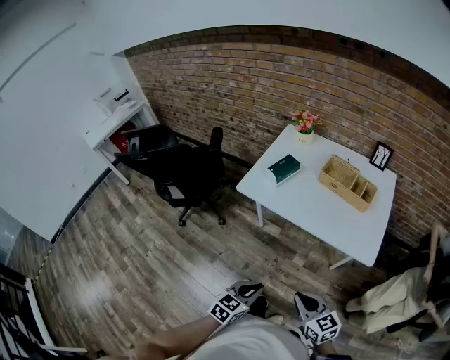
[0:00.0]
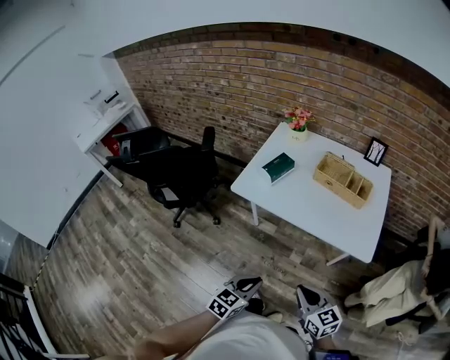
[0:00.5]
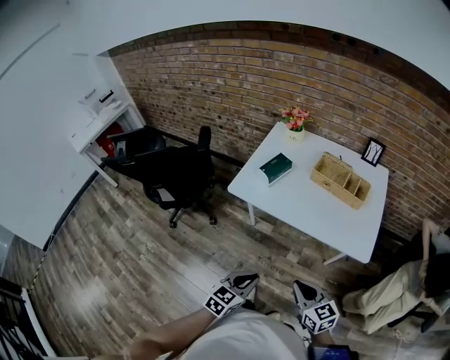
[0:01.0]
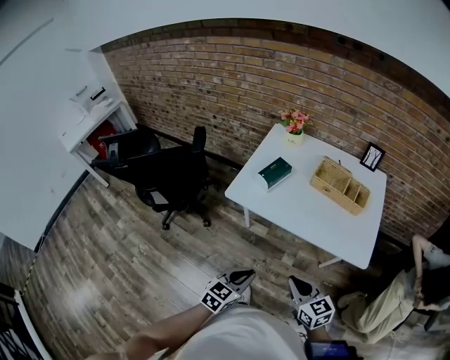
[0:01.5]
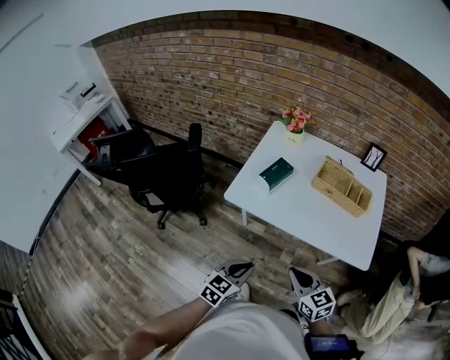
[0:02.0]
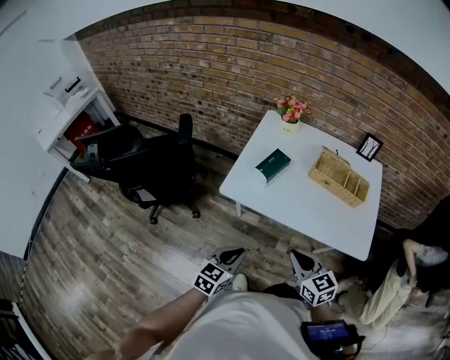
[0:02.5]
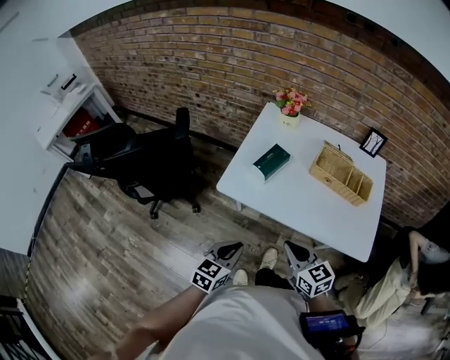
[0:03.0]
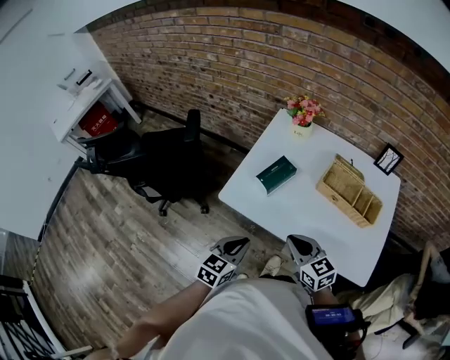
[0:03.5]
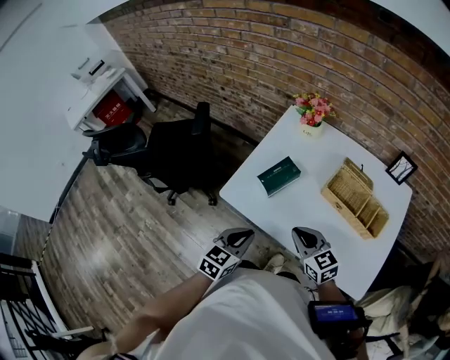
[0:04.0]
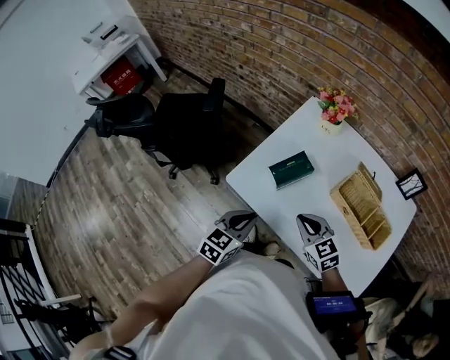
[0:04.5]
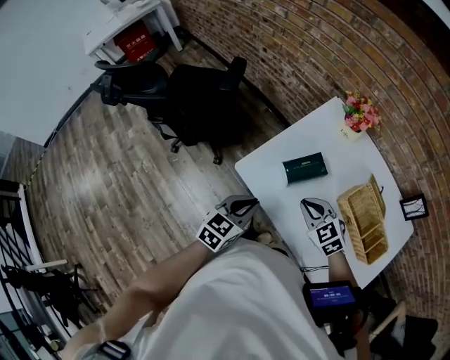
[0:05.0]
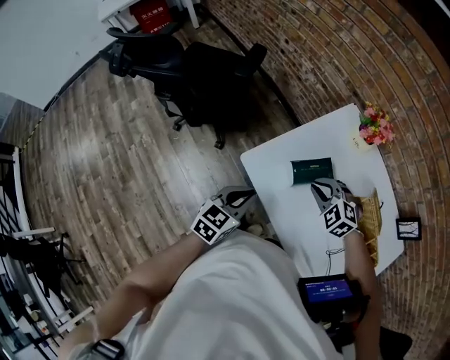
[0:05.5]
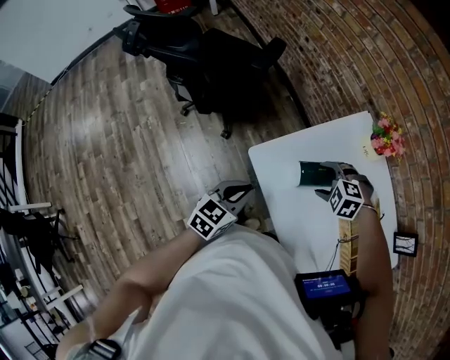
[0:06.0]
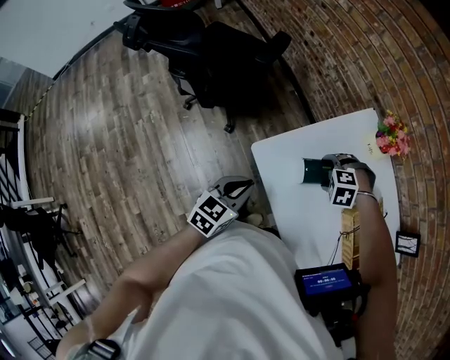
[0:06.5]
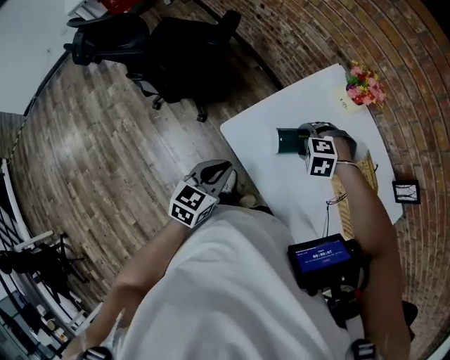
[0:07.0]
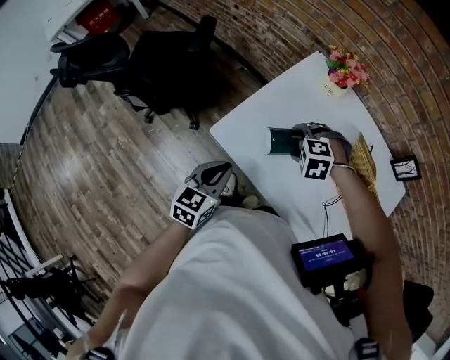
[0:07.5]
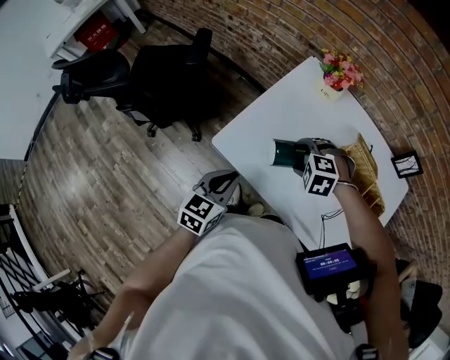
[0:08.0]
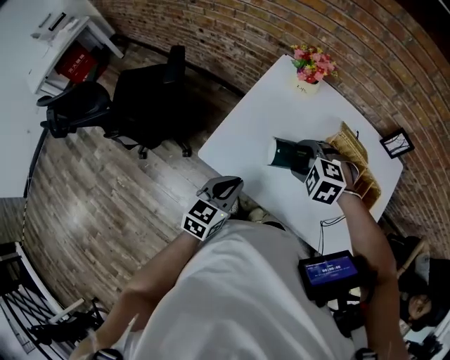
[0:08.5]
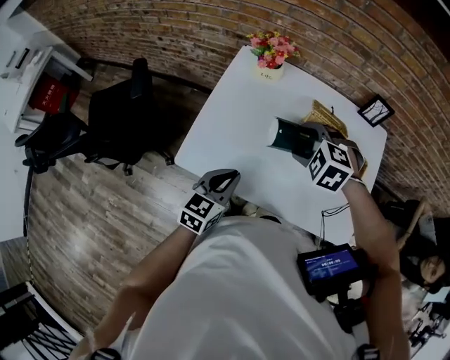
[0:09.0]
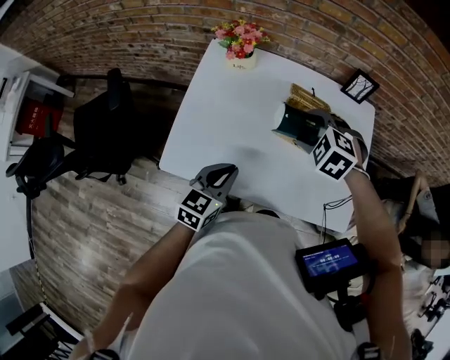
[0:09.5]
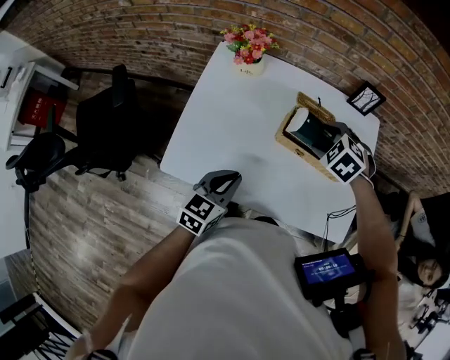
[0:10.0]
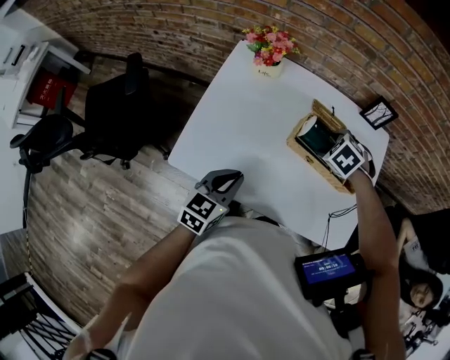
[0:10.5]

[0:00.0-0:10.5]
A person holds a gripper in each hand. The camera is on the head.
0.0 to 2.0 s: The grippers both shift forward and to the left by about 15 cm.
2.0 to 4.0 s: The two grippers go approximately 20 cm forward.
4.0 to 6.5 s: The left gripper changes place by some 10 cm, and turns by roughly 30 degrees; the right gripper shifts by about 20 cm, angles its fingers downward, by roughly 60 degrees, and opens.
6.5 to 8.5 s: The right gripper shifts approximately 10 cm upward, and rotates some 40 degrees. Meanwhile the left gripper shifts by some 10 cm, and swivels roughly 20 degrees.
8.5 to 10.5 s: The right gripper ends up roughly 20 cm from where it was, and changes its angle by about 40 degrees. Meanwhile the left gripper moves approximately 10 cm.

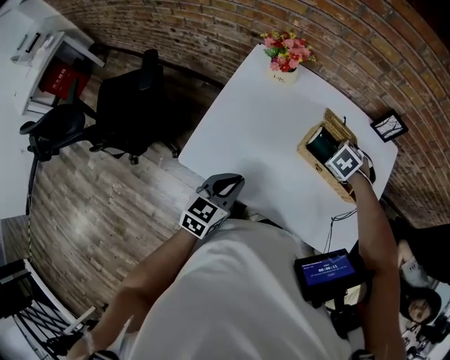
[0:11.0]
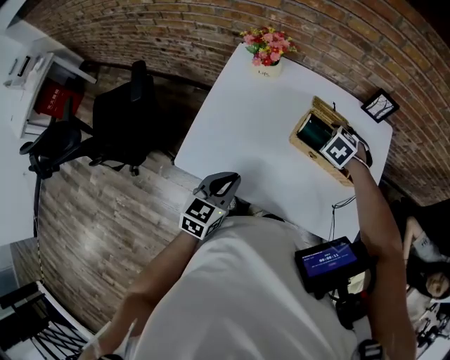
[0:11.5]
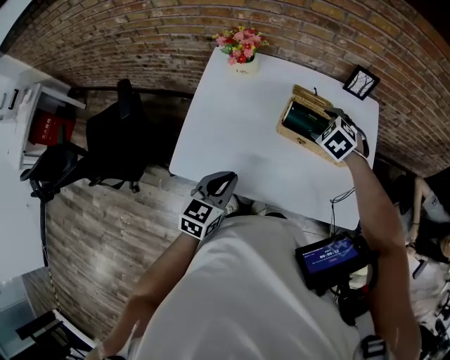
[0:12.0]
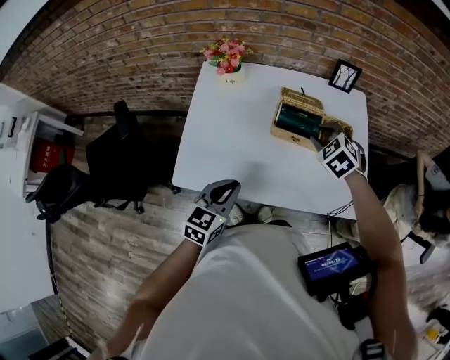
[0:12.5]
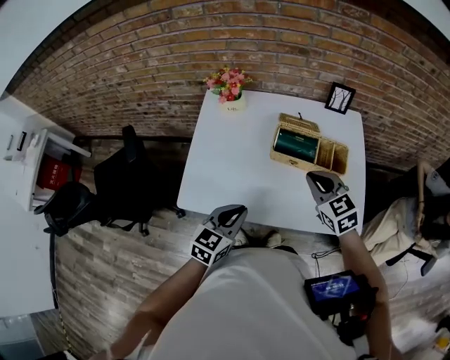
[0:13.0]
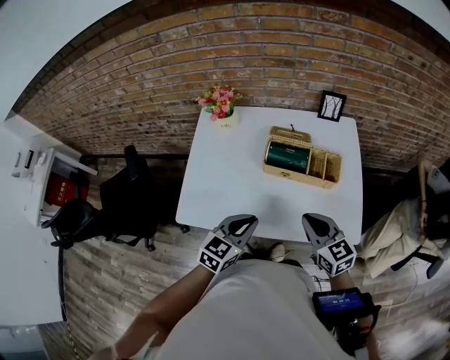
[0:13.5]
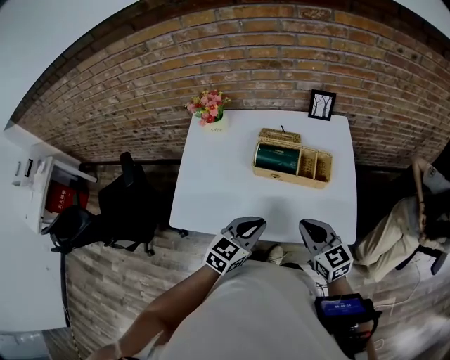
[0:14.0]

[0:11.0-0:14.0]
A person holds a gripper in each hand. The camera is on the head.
11.0 to 12.5 s: The right gripper goes some 10 cm upward, turns by approximately 30 degrees, and closes its fingers, while the left gripper shifts by roughly 5 cm.
12.5 to 14.0 s: The right gripper goes some 15 cm backward, and points its fingers some 30 degrees further upward; the left gripper is displaced to the right by roughly 15 cm.

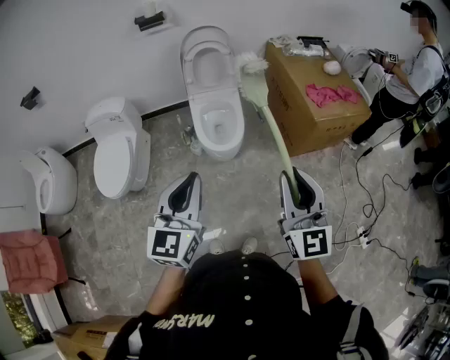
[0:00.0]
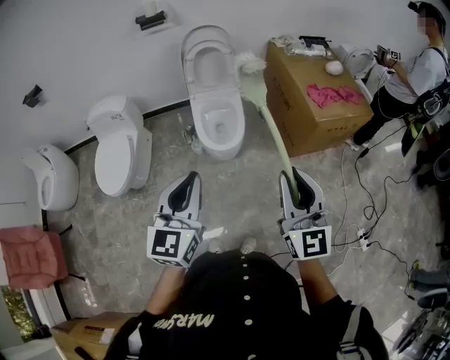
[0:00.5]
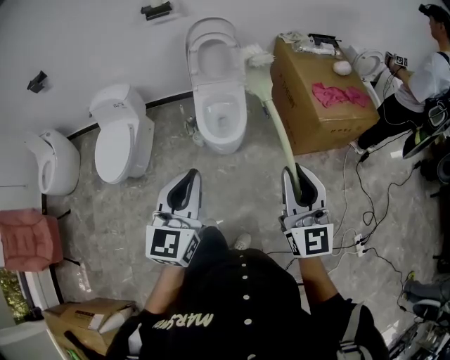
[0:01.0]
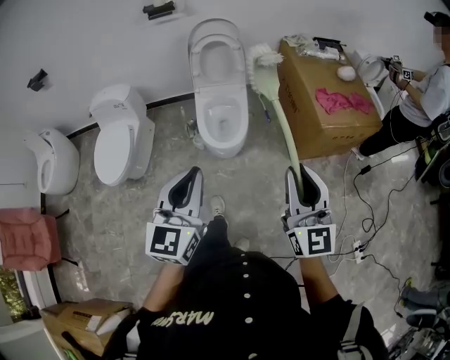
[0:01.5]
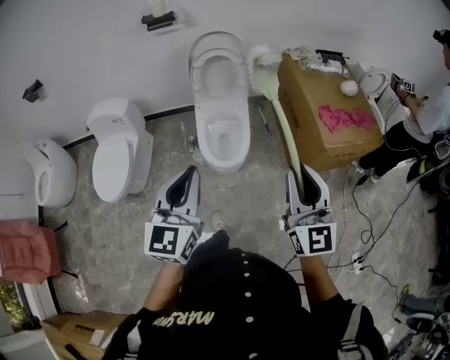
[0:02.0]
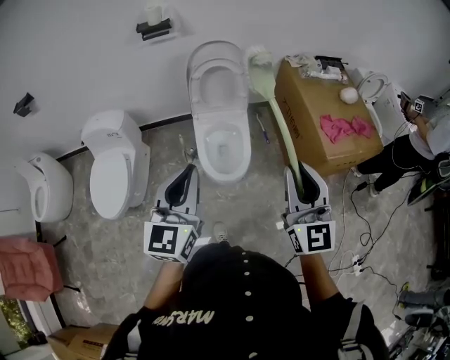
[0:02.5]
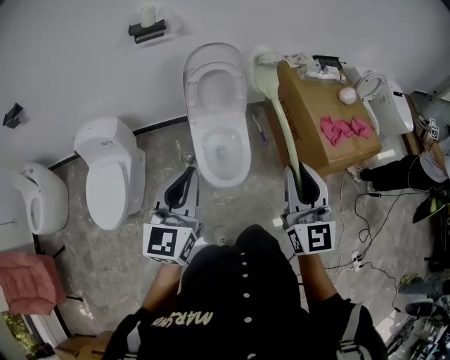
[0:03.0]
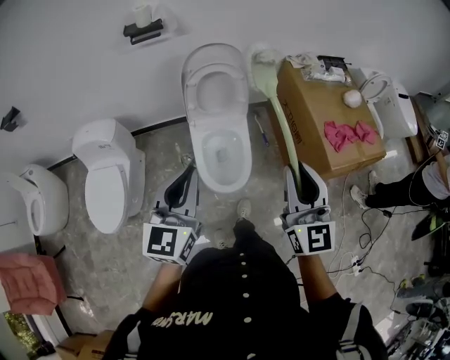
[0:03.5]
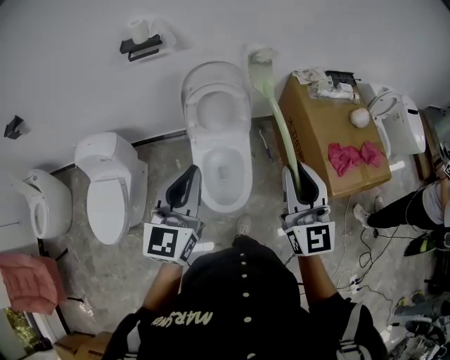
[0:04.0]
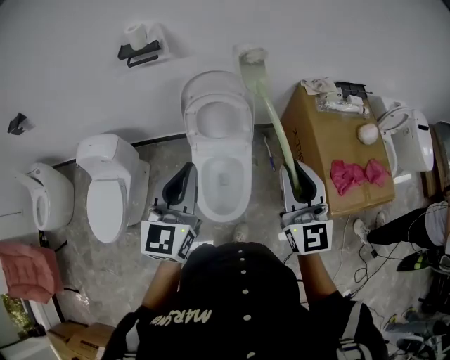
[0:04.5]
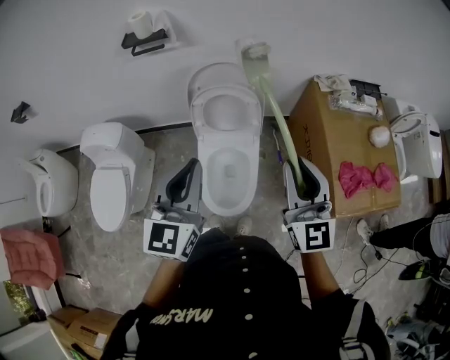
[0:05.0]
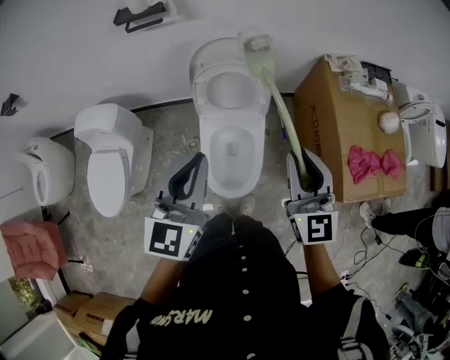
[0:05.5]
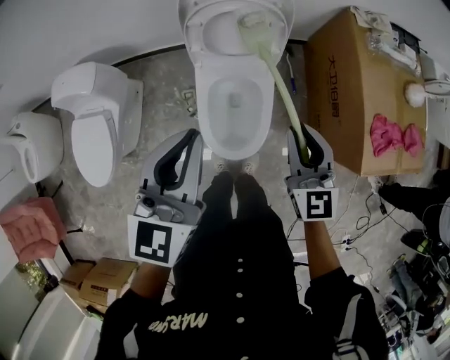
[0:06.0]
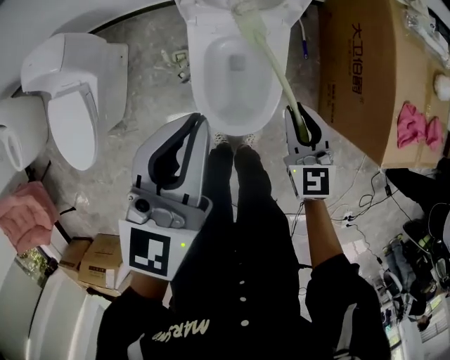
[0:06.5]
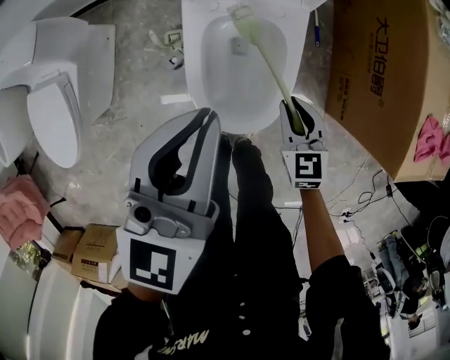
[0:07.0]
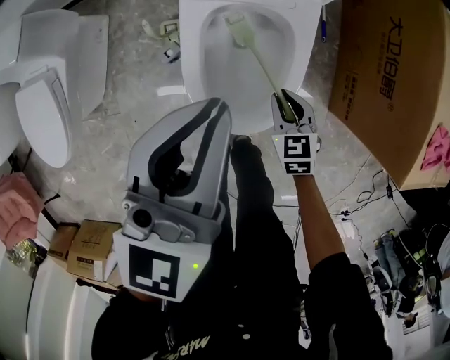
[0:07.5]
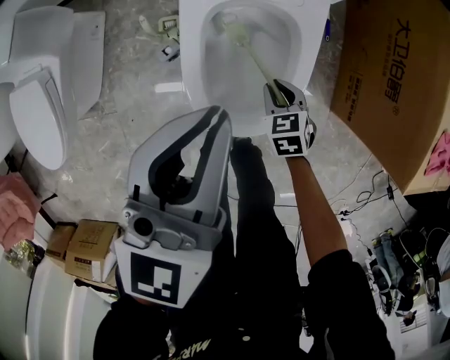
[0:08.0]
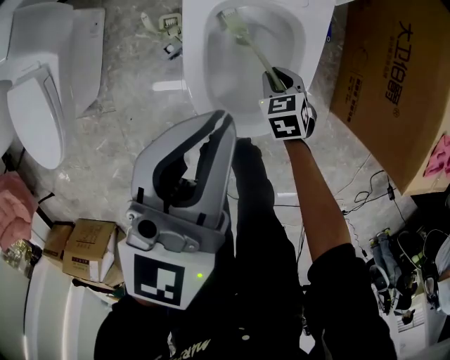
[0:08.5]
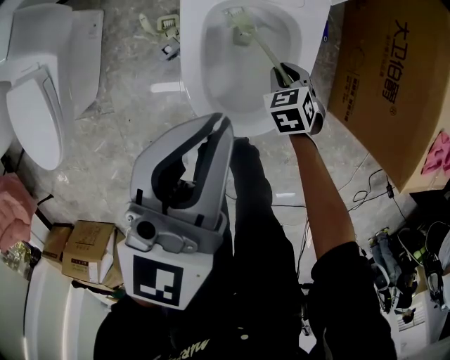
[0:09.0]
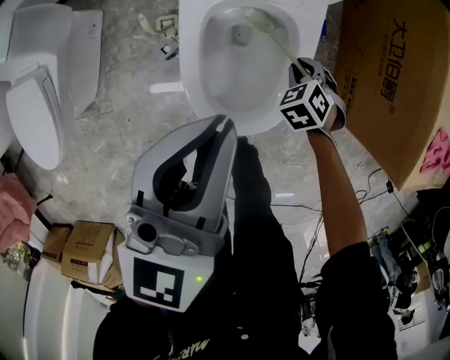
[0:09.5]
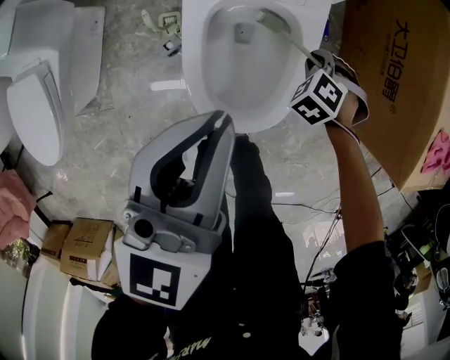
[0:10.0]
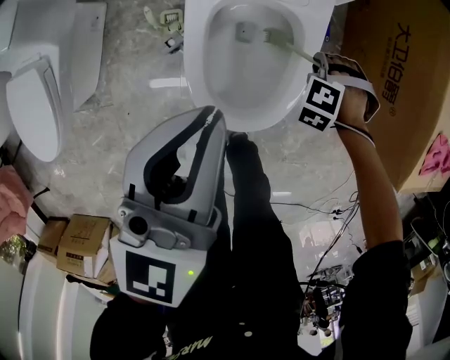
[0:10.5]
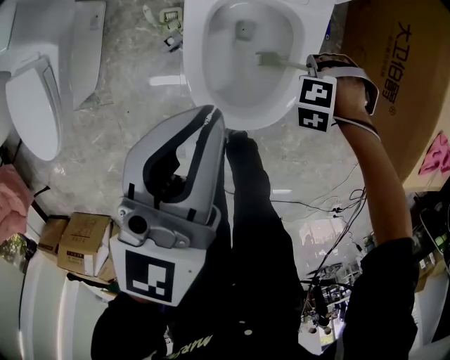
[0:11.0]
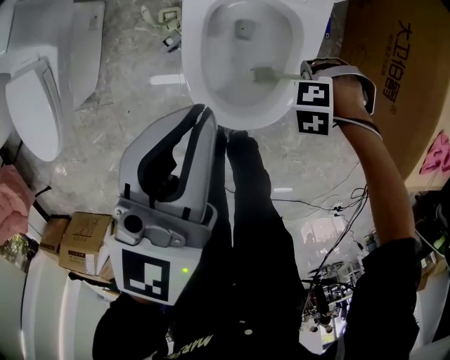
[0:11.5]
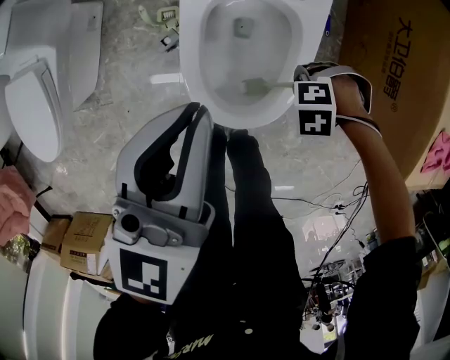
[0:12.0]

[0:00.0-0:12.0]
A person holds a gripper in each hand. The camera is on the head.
0.0 to 2.0 s: The two grippers go some 15 cm forward.
2.0 to 4.0 s: The grippers both shift forward by roughly 30 cm.
4.0 to 6.0 s: The left gripper heads forward and downward, covering approximately 20 cm; the right gripper moves downward and forward, some 30 cm, and swivels some 20 degrees.
6.0 to 8.0 s: The right gripper shifts some 50 cm downward, and tilts its fingers roughly 50 degrees downward; the left gripper heads downward, covering about 30 cm.
8.0 to 10.0 s: The right gripper ends up about 10 cm from where it was, and rotates around the line of its fingers by some 40 degrees, counterclockwise from behind.
10.0 to 12.0 s: The right gripper moves roughly 10 cm, and turns by about 50 degrees.

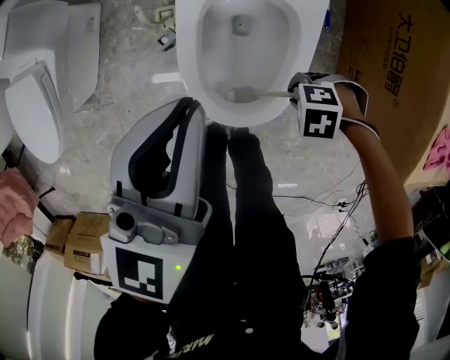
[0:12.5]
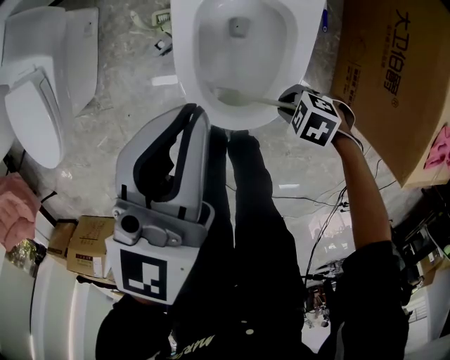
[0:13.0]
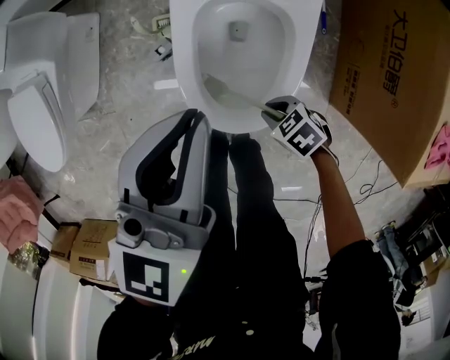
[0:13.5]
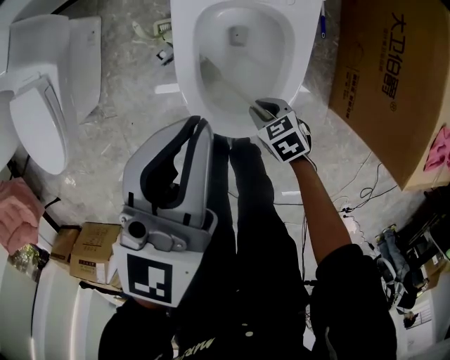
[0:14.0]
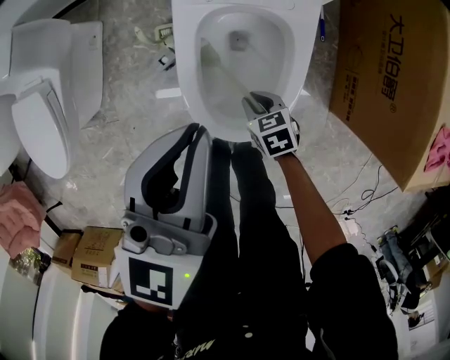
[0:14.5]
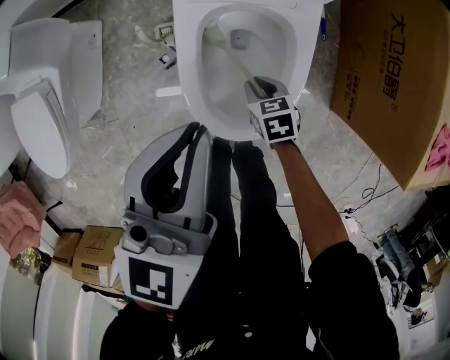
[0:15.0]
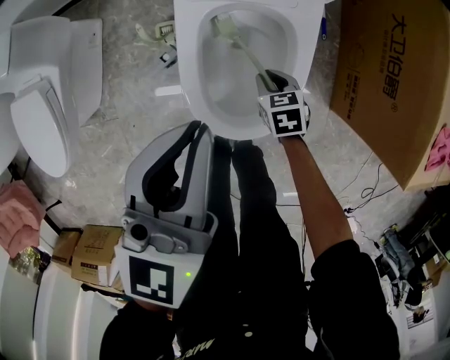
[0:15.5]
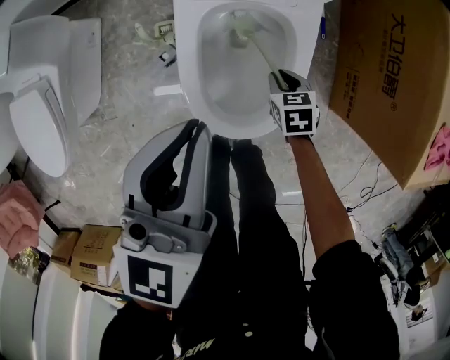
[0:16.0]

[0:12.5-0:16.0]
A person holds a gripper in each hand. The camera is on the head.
12.5 to 14.5 s: The right gripper shifts by approximately 10 cm, and twists roughly 60 degrees clockwise, seen from behind.
14.5 to 16.0 s: The right gripper heads to the right and forward, covering roughly 10 cm.
